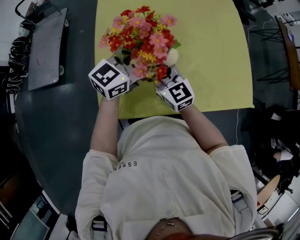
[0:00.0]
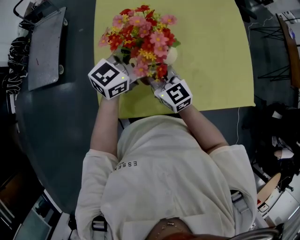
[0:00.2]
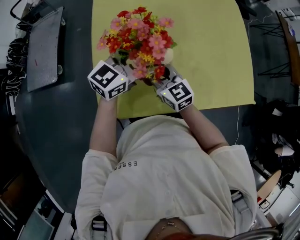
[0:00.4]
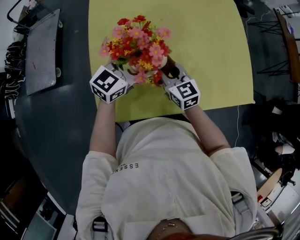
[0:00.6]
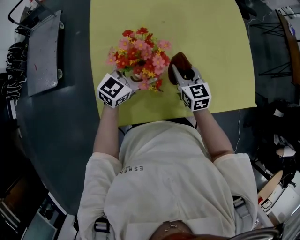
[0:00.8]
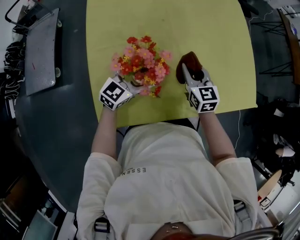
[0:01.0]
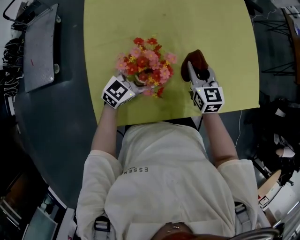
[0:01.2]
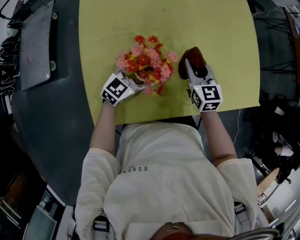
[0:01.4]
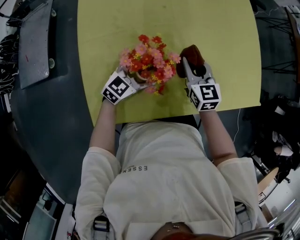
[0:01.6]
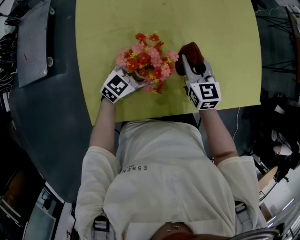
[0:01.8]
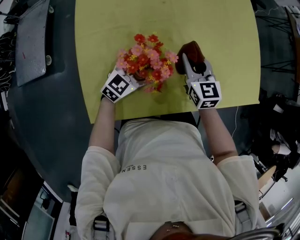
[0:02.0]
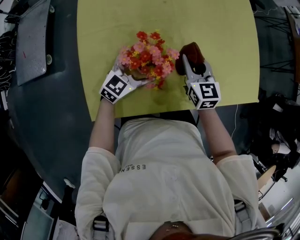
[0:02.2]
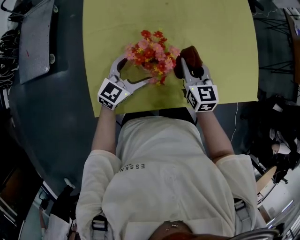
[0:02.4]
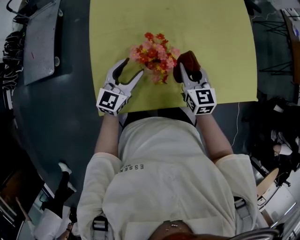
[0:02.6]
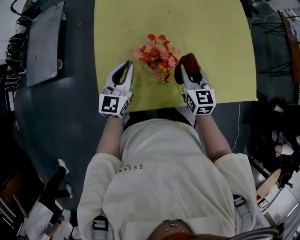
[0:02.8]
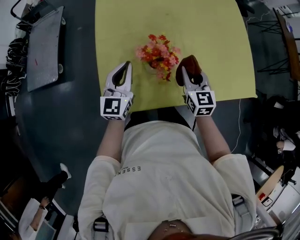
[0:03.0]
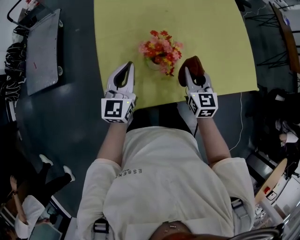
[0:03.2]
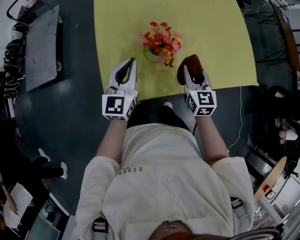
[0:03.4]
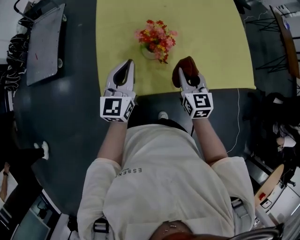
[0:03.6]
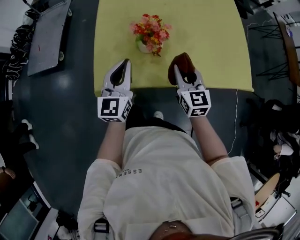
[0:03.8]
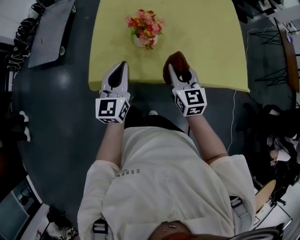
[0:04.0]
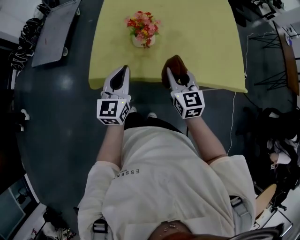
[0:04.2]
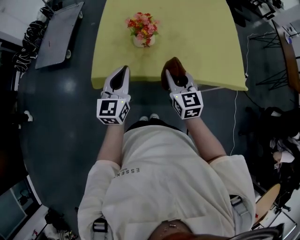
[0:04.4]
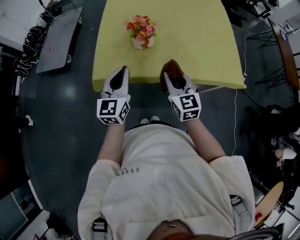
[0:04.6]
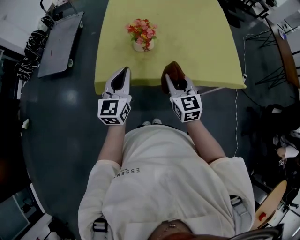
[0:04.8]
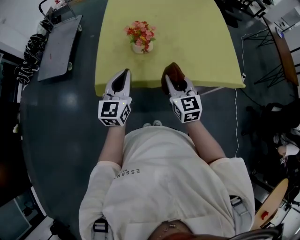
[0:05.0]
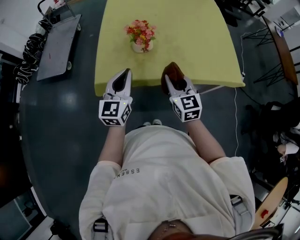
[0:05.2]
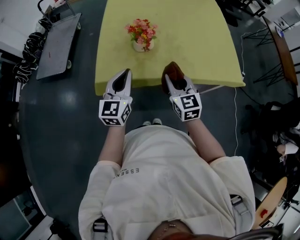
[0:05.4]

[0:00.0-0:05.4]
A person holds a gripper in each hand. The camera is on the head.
0:00.0 to 0:01.4: The right gripper heads to the right, downward and forward, covering some 20 cm, and rotates some 30 degrees. The left gripper goes about 25 cm downward, and swivels approximately 20 degrees.
0:01.4 to 0:02.8: The right gripper heads backward, covering about 10 cm. Meanwhile the left gripper moves to the left, upward and backward, approximately 15 cm, changes its angle by approximately 40 degrees, and closes up.
0:02.8 to 0:04.0: The two grippers go roughly 15 cm backward.
0:04.0 to 0:05.4: The grippers both shift backward by about 10 cm.

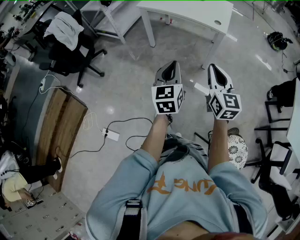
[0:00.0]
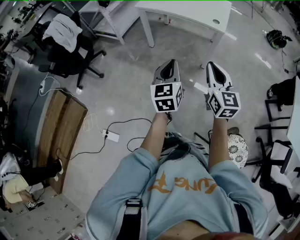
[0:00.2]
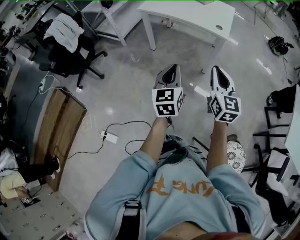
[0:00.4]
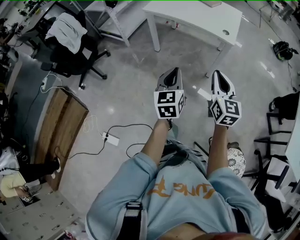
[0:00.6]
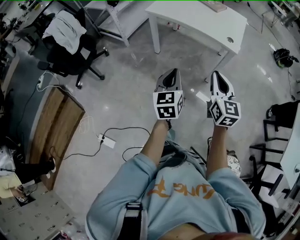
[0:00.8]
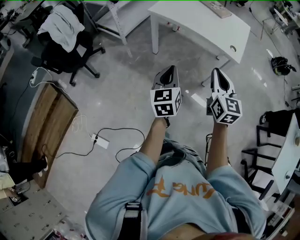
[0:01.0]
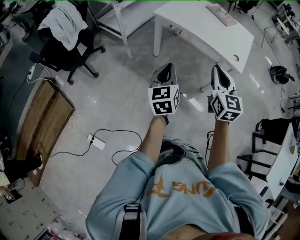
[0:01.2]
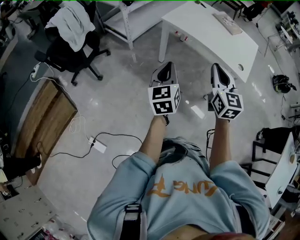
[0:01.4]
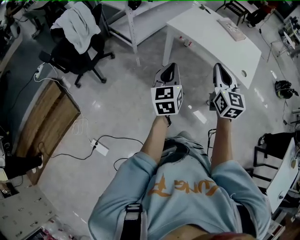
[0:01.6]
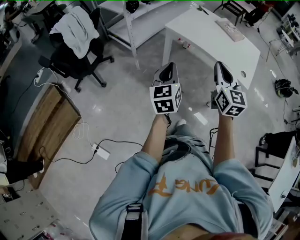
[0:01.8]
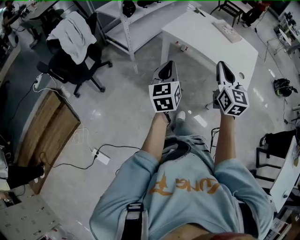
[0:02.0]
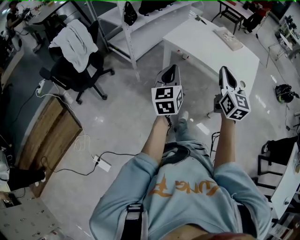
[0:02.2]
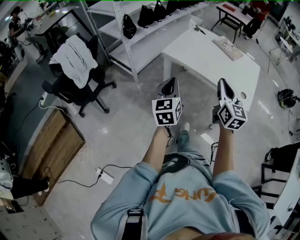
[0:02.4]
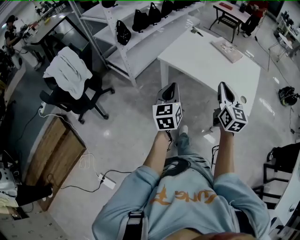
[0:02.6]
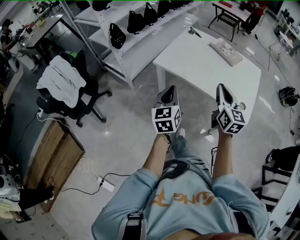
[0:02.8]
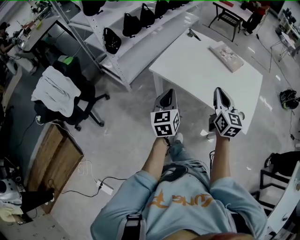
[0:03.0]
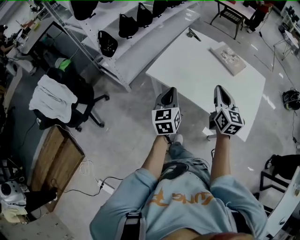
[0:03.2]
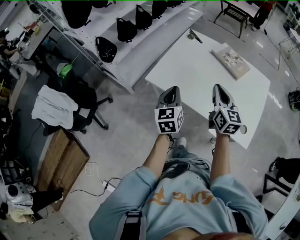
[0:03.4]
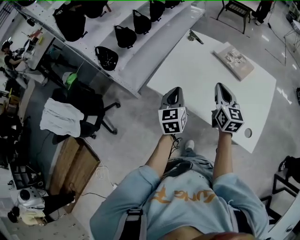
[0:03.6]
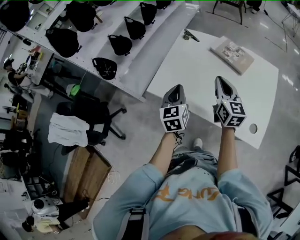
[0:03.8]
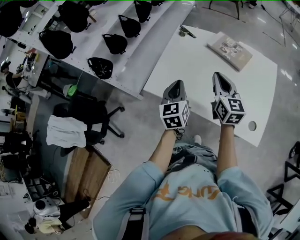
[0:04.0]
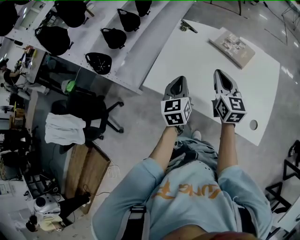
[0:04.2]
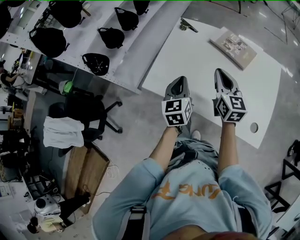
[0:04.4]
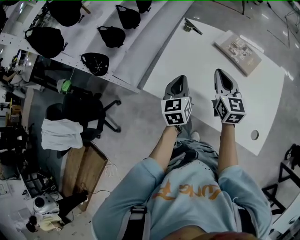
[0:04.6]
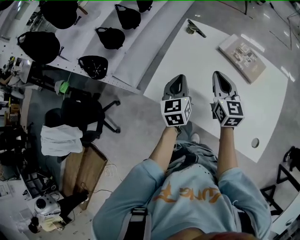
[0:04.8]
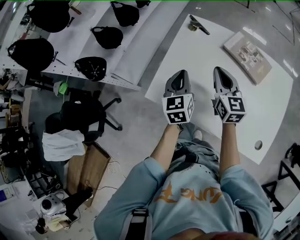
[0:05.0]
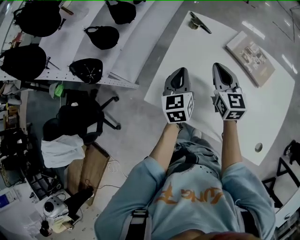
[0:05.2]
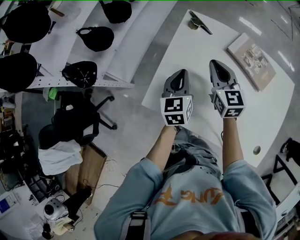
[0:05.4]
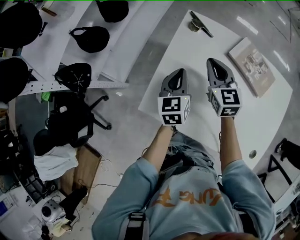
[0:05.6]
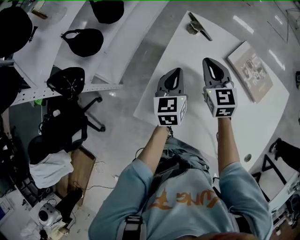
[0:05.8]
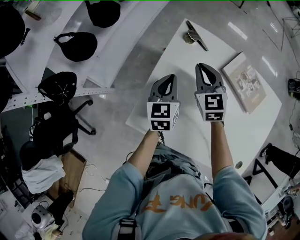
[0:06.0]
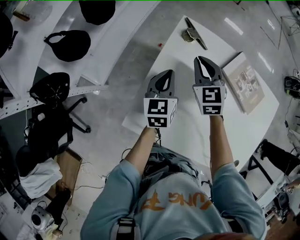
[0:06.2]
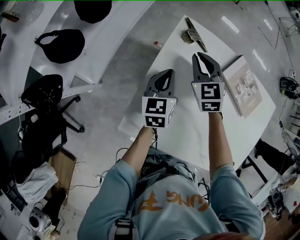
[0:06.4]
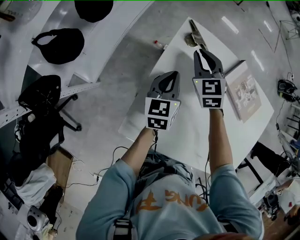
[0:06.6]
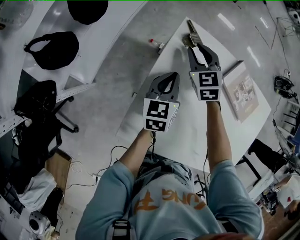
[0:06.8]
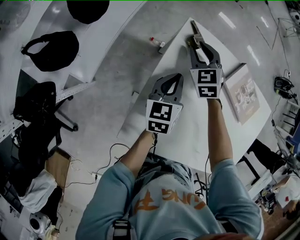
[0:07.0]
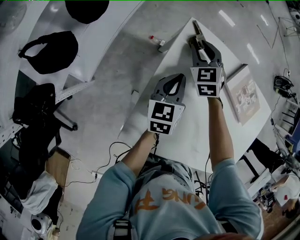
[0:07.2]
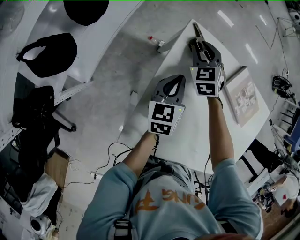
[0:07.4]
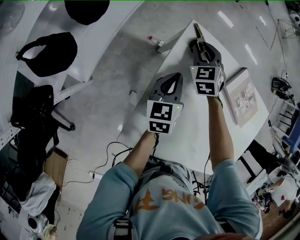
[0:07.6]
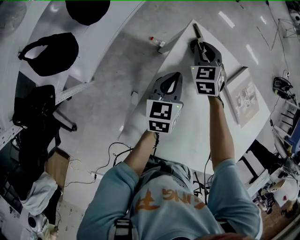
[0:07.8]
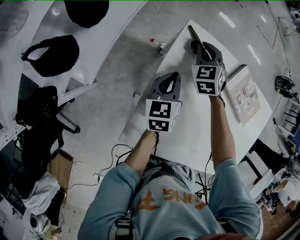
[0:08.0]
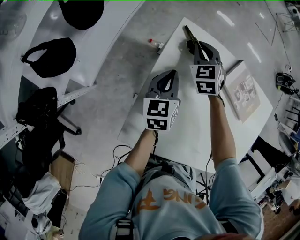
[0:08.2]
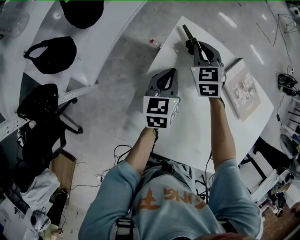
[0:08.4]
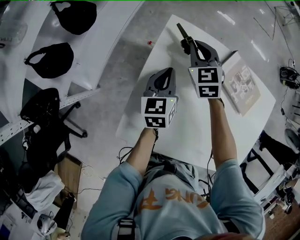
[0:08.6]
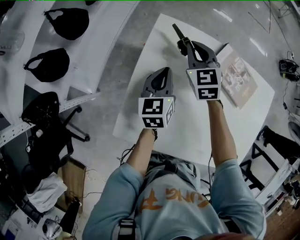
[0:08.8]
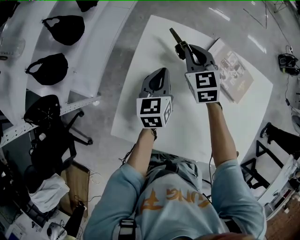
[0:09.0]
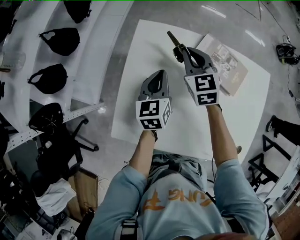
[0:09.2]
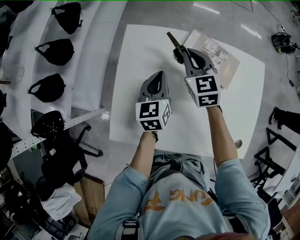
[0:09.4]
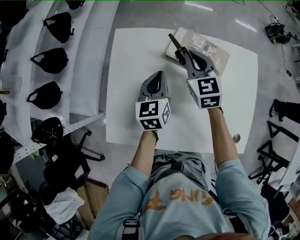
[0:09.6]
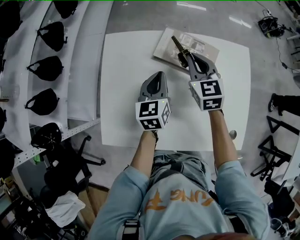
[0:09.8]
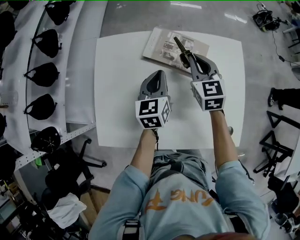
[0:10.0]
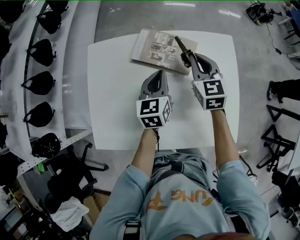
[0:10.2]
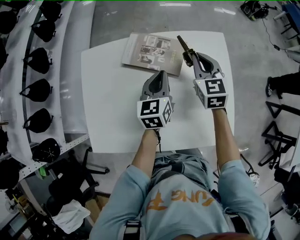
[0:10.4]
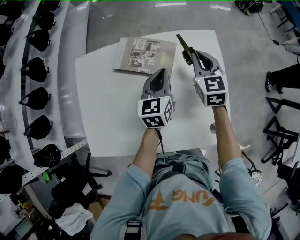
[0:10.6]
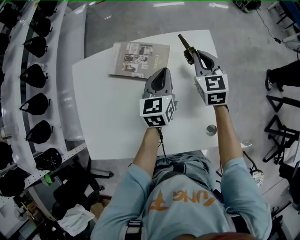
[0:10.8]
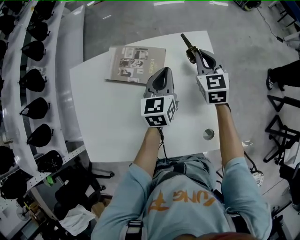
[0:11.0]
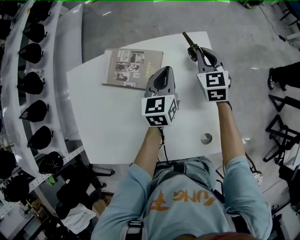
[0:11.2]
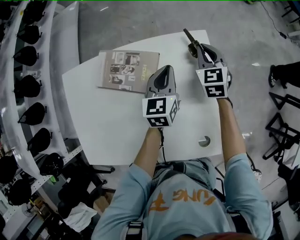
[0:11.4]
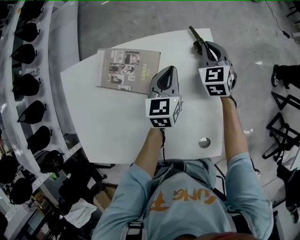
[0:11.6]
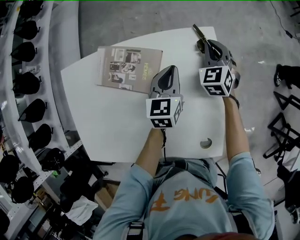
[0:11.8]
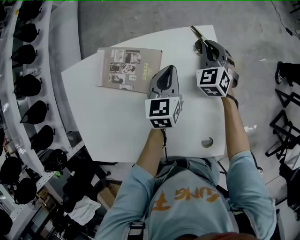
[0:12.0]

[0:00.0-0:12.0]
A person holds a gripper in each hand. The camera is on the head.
0:00.0 to 0:01.6: The two grippers go roughly 35 cm forward and to the left.
0:01.6 to 0:03.0: The left gripper is displaced forward by approximately 30 cm, while the right gripper is displaced forward and to the right by roughly 30 cm.
0:03.0 to 0:04.4: The right gripper moves forward, approximately 25 cm. Meanwhile the left gripper shifts some 25 cm forward and to the right.
0:04.4 to 0:06.0: The left gripper goes some 25 cm forward. Meanwhile the right gripper shifts some 30 cm forward and to the left, and changes its angle by approximately 30 degrees.
0:06.0 to 0:07.6: The left gripper shifts about 10 cm forward and downward, while the right gripper travels forward and downward by approximately 20 cm, and turns by approximately 20 degrees.
0:07.6 to 0:09.0: The right gripper moves to the right, upward and backward, about 15 cm, and turns by roughly 20 degrees, while the left gripper heads to the right and upward, covering roughly 10 cm.
0:09.0 to 0:10.4: Both grippers travel together to the right, approximately 35 cm. The left gripper turns by some 20 degrees, while the right gripper rotates some 30 degrees.
0:10.4 to 0:12.0: The grippers both shift to the right, forward and downward by roughly 20 cm. The right gripper swivels about 30 degrees.

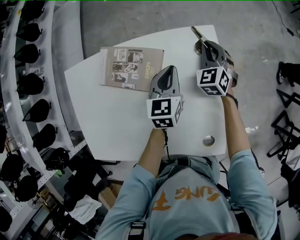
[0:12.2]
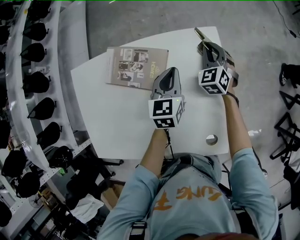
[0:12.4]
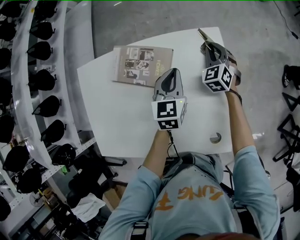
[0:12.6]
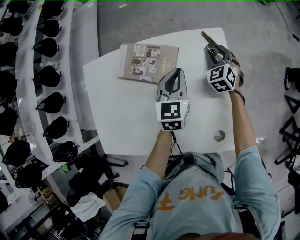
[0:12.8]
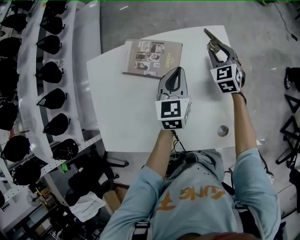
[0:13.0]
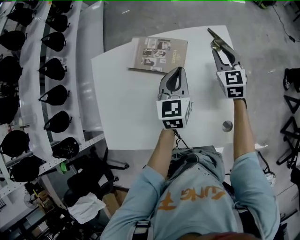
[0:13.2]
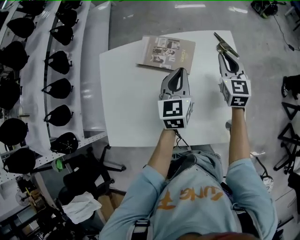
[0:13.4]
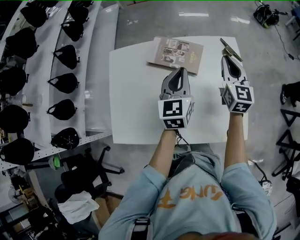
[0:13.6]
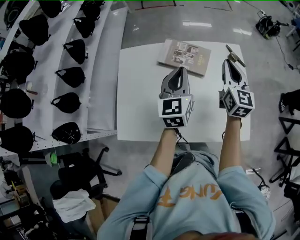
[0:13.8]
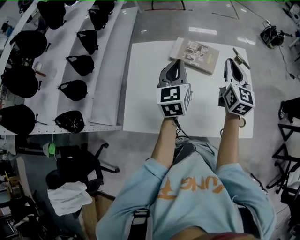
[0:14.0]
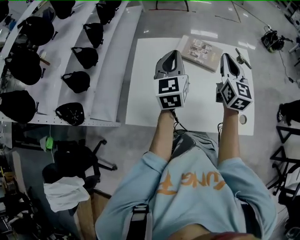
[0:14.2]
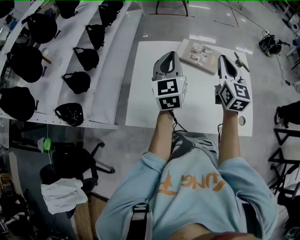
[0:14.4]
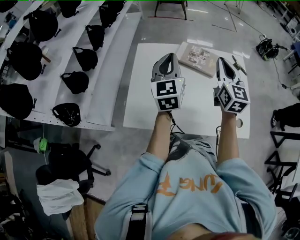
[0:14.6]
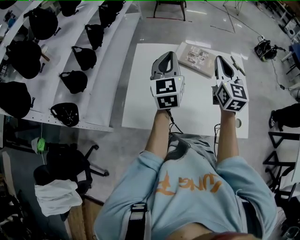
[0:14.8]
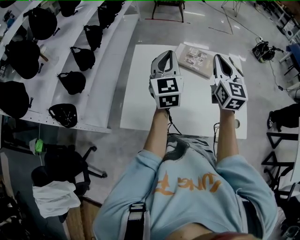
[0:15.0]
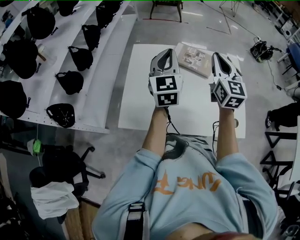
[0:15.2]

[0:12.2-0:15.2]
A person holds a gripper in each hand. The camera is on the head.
0:12.2 to 0:13.8: The right gripper heads upward, backward and to the left, covering about 35 cm, changes its angle by roughly 50 degrees, and opens, then closes once more; the left gripper travels upward, to the left and backward by about 30 cm, and changes its angle by about 20 degrees.
0:13.8 to 0:15.2: The left gripper shifts roughly 15 cm to the left and upward. The right gripper travels to the left, upward and backward by some 15 cm.

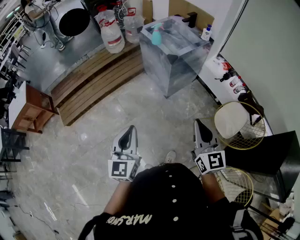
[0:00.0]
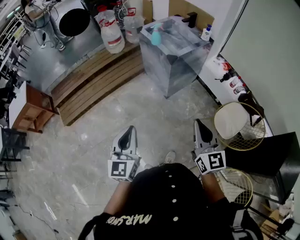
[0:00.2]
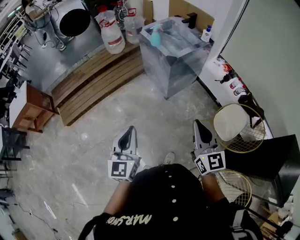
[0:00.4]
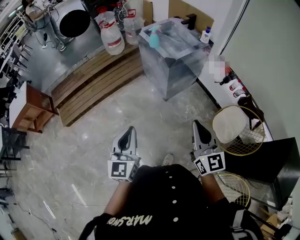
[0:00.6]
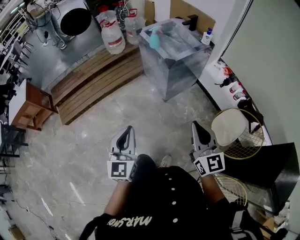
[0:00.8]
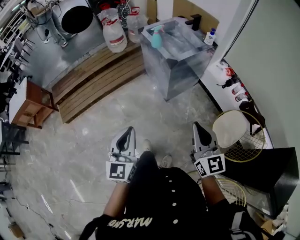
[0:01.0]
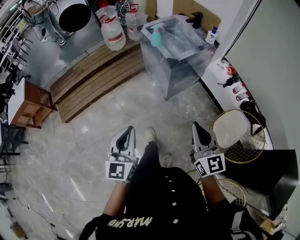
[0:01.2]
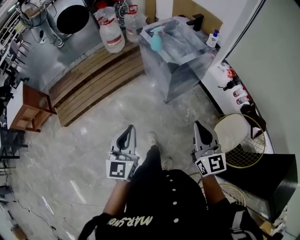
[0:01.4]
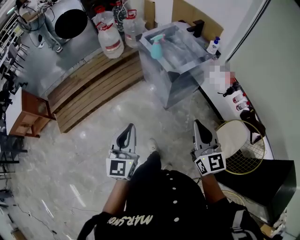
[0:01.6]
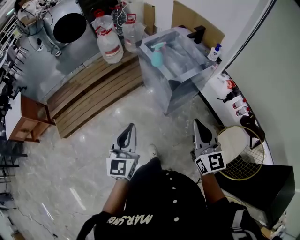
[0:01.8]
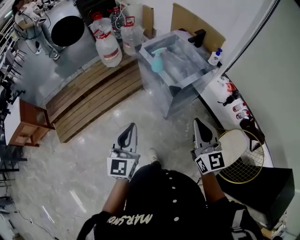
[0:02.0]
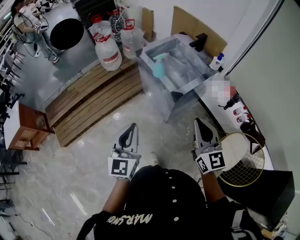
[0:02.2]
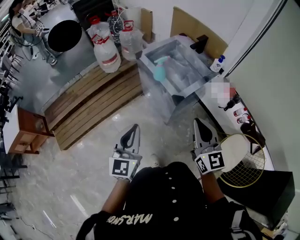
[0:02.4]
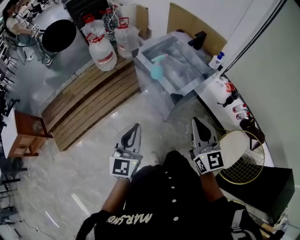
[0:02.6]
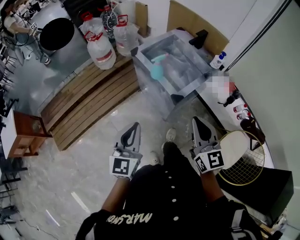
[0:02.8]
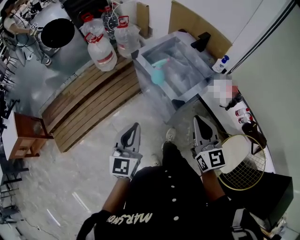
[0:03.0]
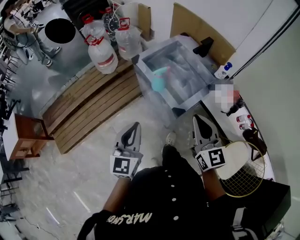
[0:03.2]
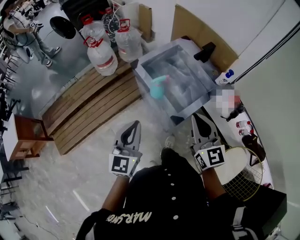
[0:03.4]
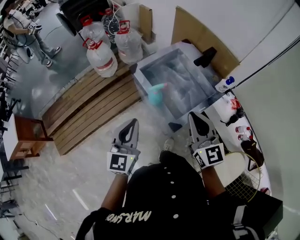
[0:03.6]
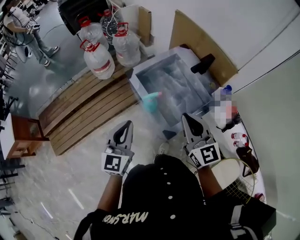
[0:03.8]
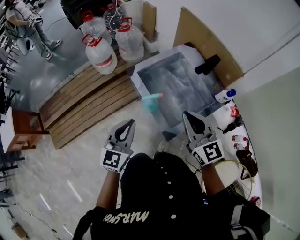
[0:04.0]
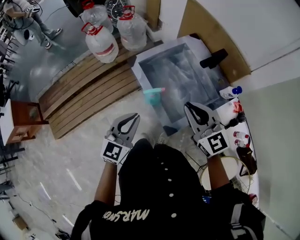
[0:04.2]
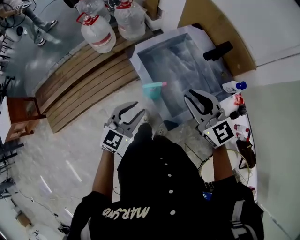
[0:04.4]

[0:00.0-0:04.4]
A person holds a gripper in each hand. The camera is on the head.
0:00.0 to 0:01.4: Both grippers move forward, some 10 cm.
0:01.4 to 0:03.0: Both grippers travel together forward, some 30 cm.
0:03.0 to 0:04.4: The right gripper travels forward by roughly 30 cm, and turns by some 30 degrees. The left gripper shifts roughly 25 cm forward and downward, and turns by about 20 degrees.
